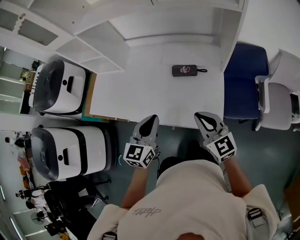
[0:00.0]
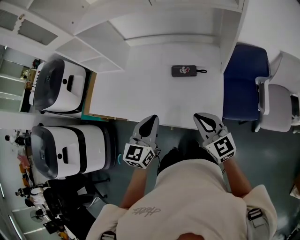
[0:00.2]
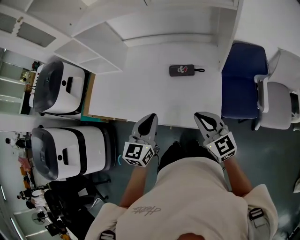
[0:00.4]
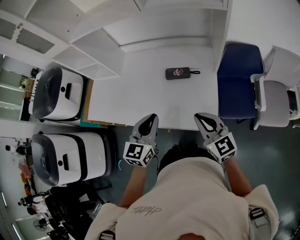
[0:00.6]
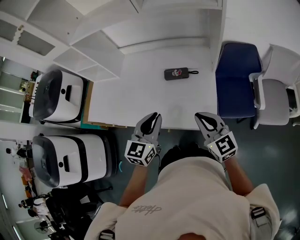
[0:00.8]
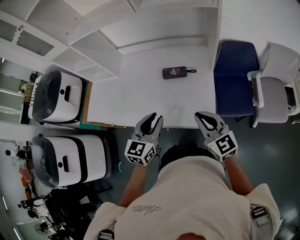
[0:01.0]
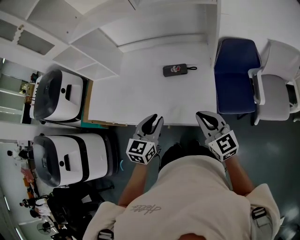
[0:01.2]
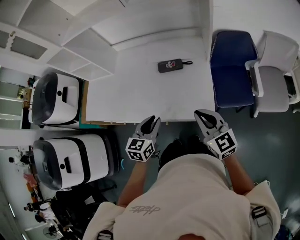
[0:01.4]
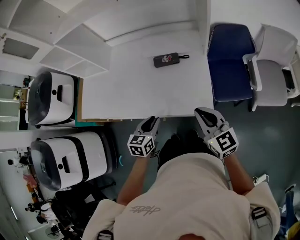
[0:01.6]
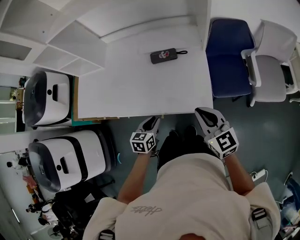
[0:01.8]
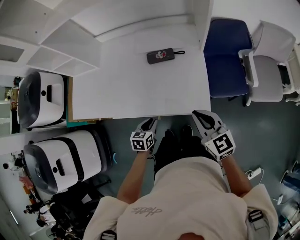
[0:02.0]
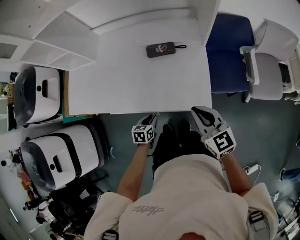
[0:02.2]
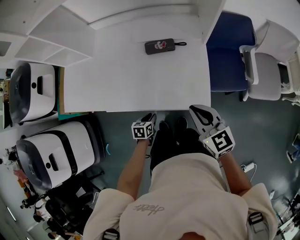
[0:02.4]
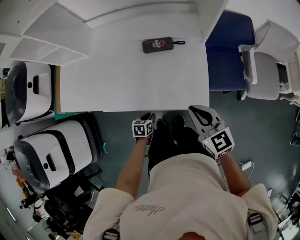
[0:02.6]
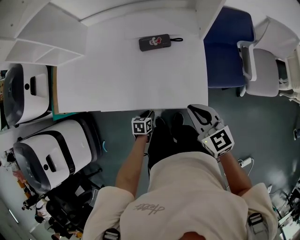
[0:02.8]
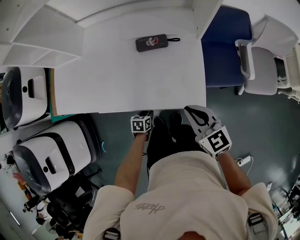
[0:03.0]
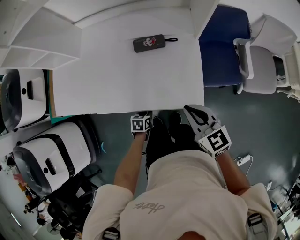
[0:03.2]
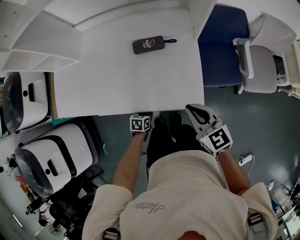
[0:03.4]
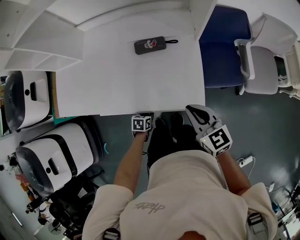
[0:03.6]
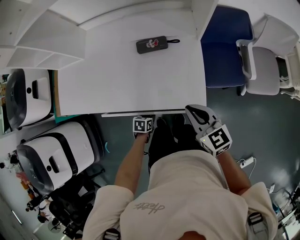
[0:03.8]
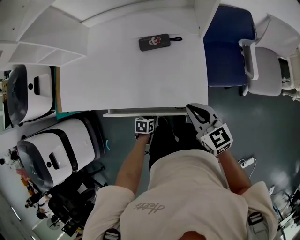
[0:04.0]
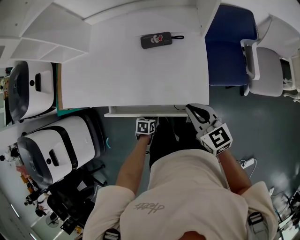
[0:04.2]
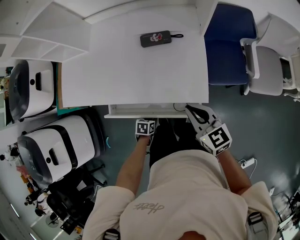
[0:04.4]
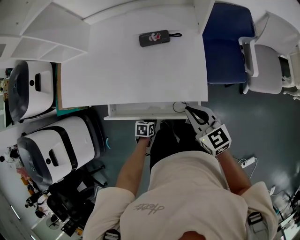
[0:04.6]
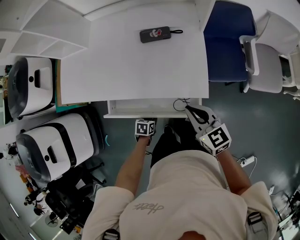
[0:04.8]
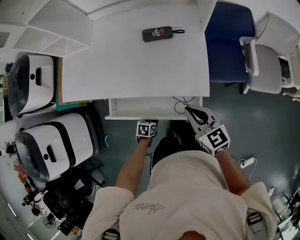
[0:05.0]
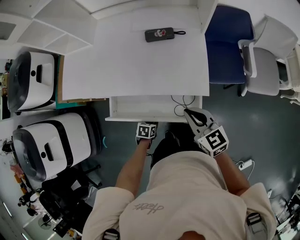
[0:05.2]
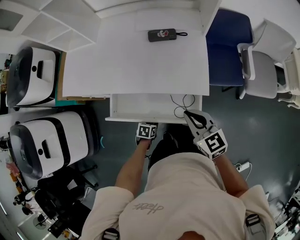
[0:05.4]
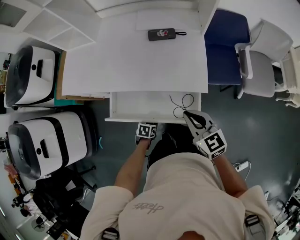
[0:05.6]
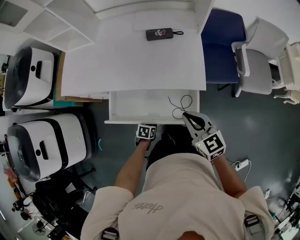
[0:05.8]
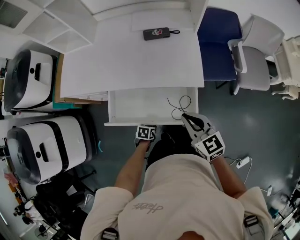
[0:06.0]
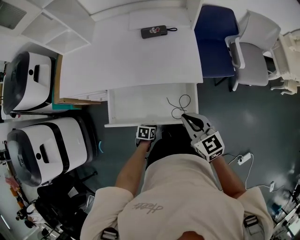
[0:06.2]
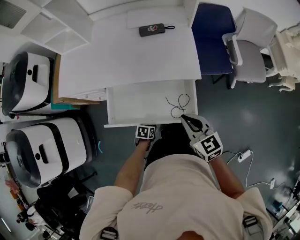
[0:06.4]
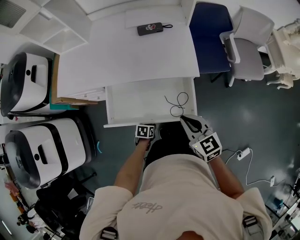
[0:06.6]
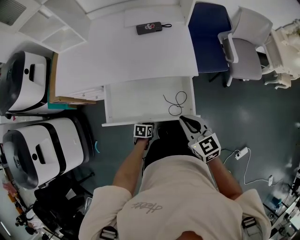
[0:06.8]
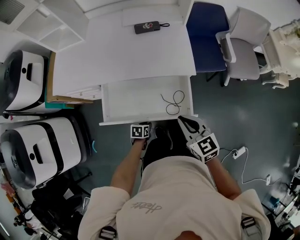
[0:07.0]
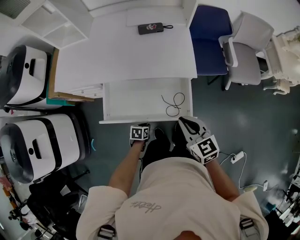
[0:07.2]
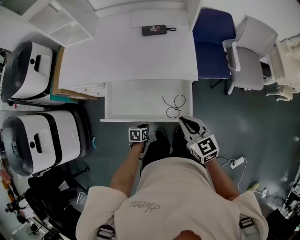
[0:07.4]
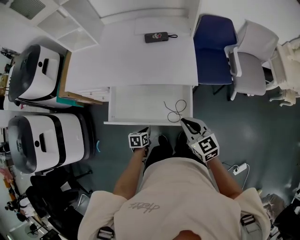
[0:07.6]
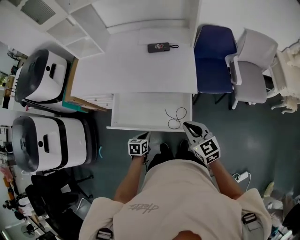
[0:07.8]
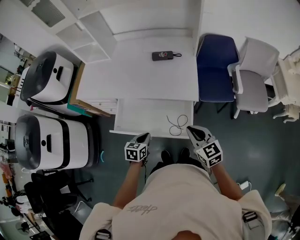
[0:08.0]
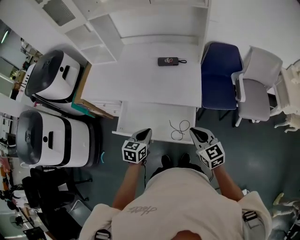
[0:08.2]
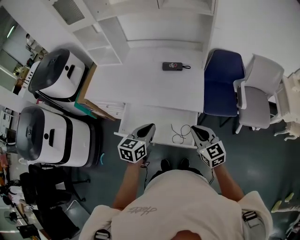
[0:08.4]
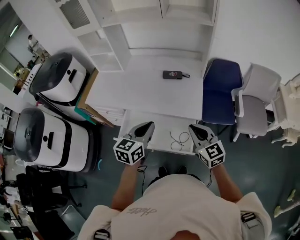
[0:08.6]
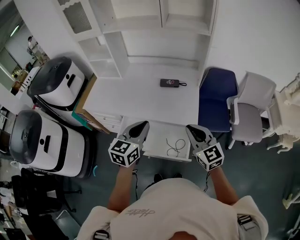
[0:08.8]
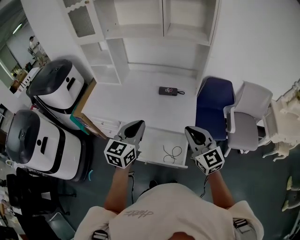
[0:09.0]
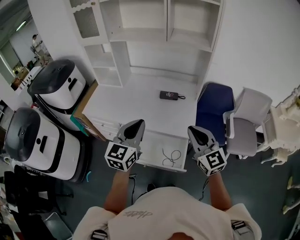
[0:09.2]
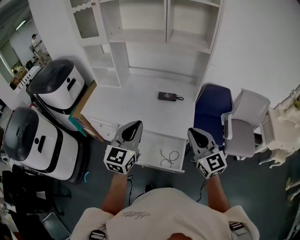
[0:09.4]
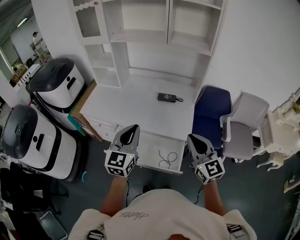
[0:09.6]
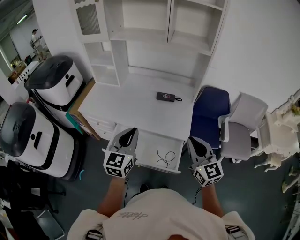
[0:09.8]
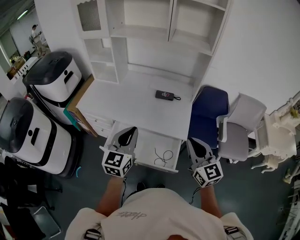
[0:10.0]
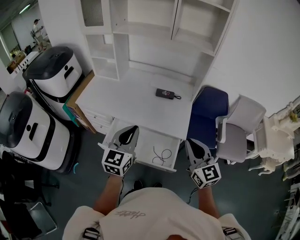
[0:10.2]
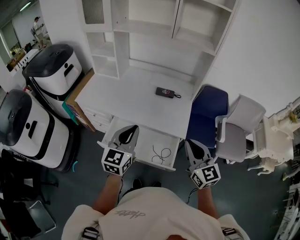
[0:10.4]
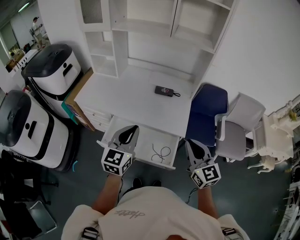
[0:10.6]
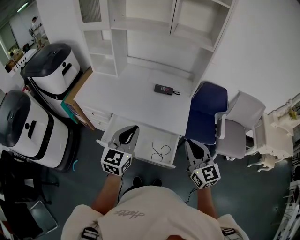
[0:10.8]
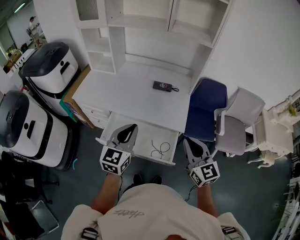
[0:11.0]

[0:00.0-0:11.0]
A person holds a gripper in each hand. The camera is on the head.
0.0 to 1.6 s: The left gripper moves downward, roughly 15 cm, swivels roughly 20 degrees, and opens up, while the right gripper moves to the right and backward, roughly 10 cm.
1.6 to 3.2 s: The left gripper is displaced downward by about 25 cm, and changes its angle by approximately 30 degrees. The right gripper moves downward, some 5 cm.
3.2 to 4.8 s: The left gripper shifts approximately 10 cm backward. Meanwhile the right gripper travels backward by roughly 5 cm.
4.8 to 6.2 s: The two grippers go roughly 15 cm backward.
6.2 to 7.8 s: The left gripper travels upward by approximately 15 cm, and turns by about 20 degrees, while the right gripper goes about 5 cm to the right.
7.8 to 9.4 s: The left gripper is displaced upward by roughly 50 cm, and tips its fingers upward by about 50 degrees, while the right gripper goes about 20 cm upward, and turns by approximately 30 degrees.
9.4 to 11.0 s: The two grippers go some 5 cm downward.

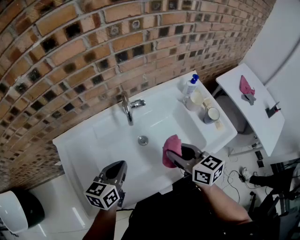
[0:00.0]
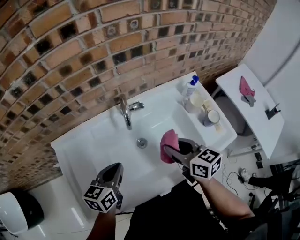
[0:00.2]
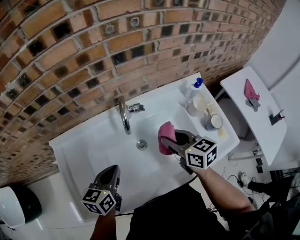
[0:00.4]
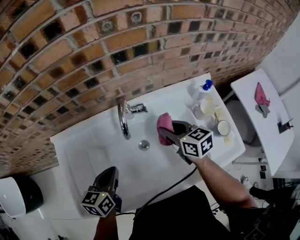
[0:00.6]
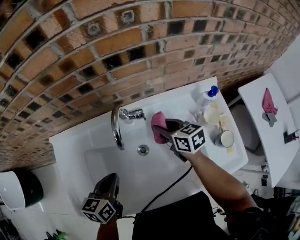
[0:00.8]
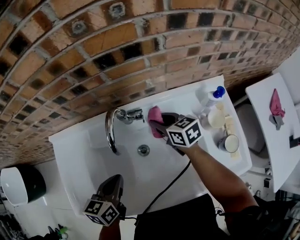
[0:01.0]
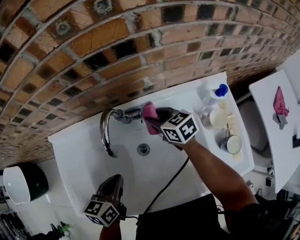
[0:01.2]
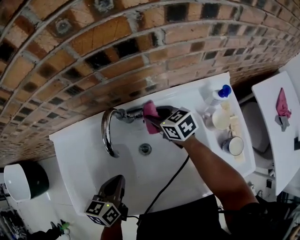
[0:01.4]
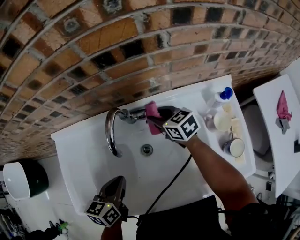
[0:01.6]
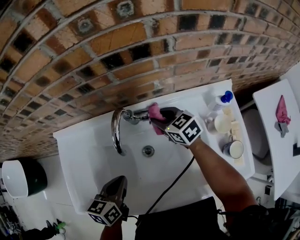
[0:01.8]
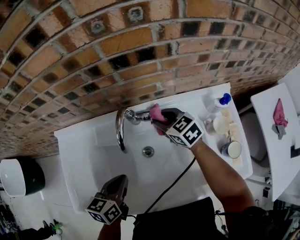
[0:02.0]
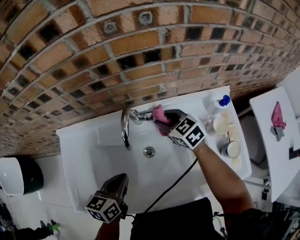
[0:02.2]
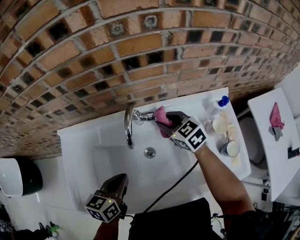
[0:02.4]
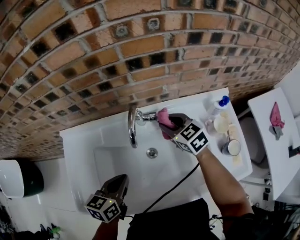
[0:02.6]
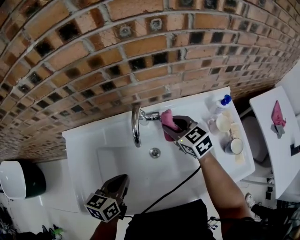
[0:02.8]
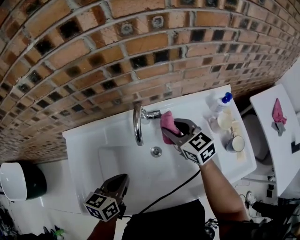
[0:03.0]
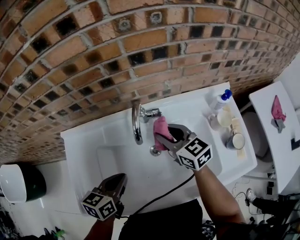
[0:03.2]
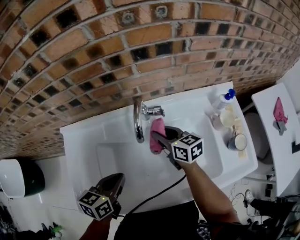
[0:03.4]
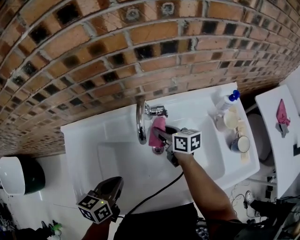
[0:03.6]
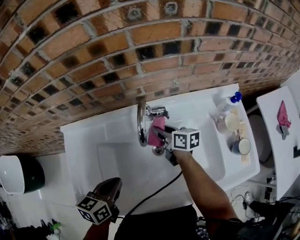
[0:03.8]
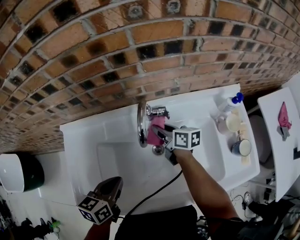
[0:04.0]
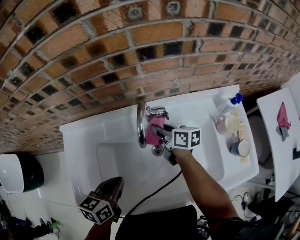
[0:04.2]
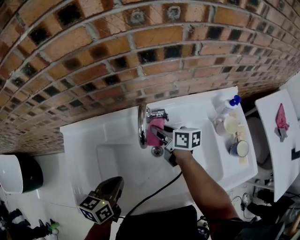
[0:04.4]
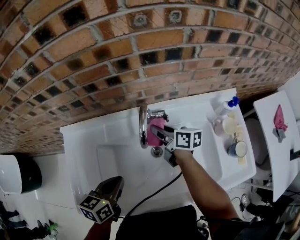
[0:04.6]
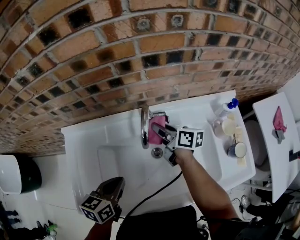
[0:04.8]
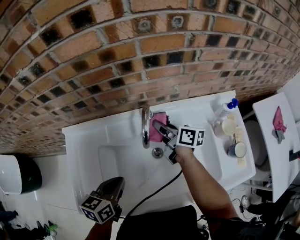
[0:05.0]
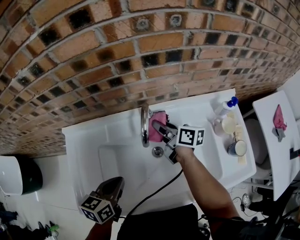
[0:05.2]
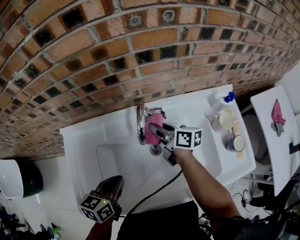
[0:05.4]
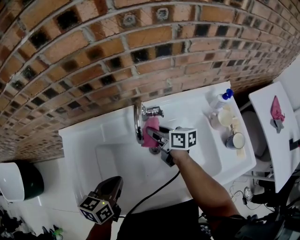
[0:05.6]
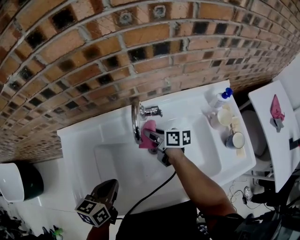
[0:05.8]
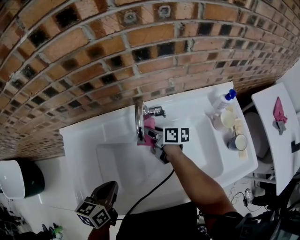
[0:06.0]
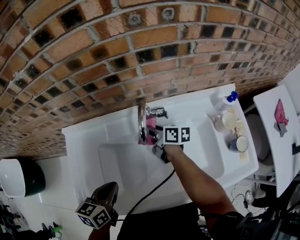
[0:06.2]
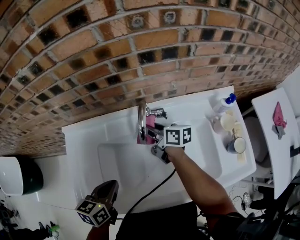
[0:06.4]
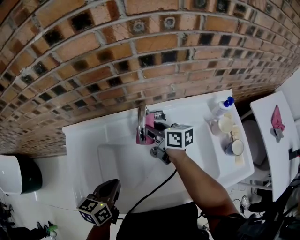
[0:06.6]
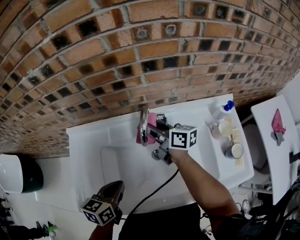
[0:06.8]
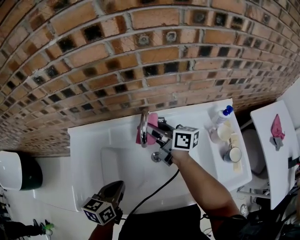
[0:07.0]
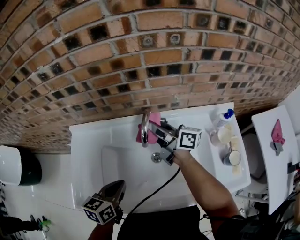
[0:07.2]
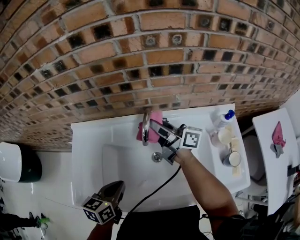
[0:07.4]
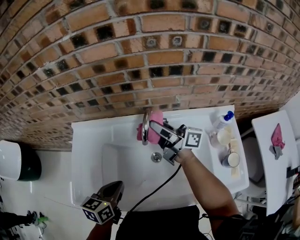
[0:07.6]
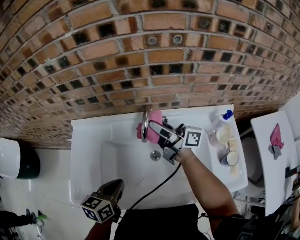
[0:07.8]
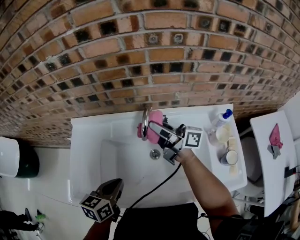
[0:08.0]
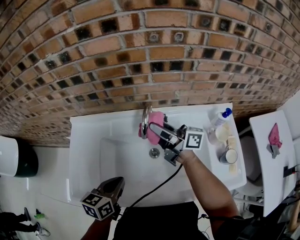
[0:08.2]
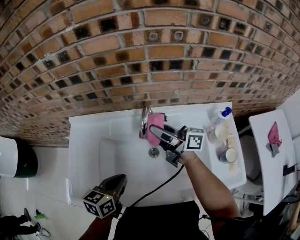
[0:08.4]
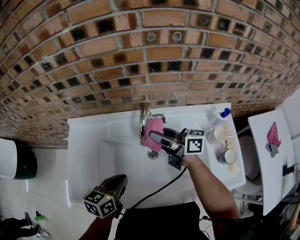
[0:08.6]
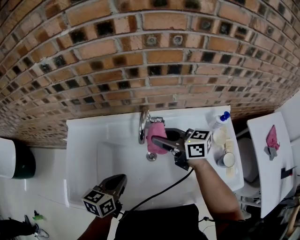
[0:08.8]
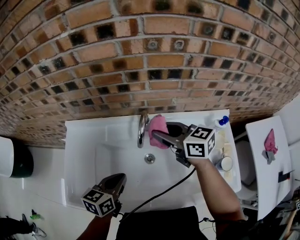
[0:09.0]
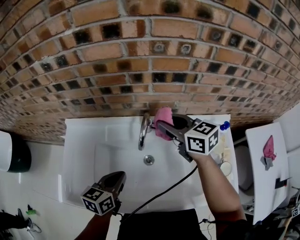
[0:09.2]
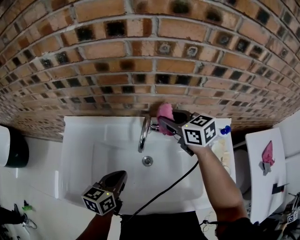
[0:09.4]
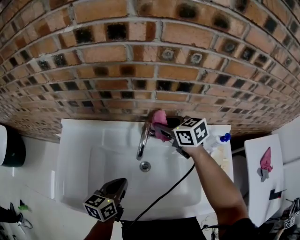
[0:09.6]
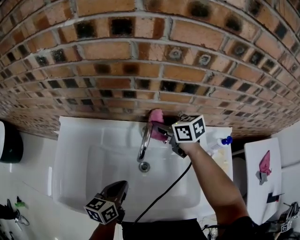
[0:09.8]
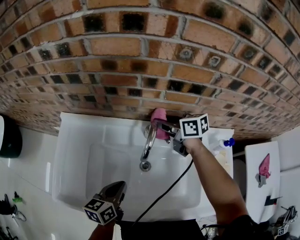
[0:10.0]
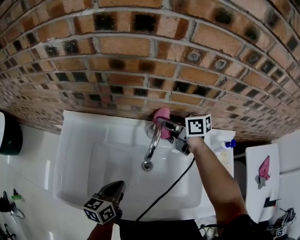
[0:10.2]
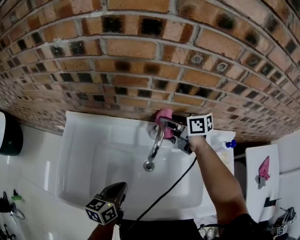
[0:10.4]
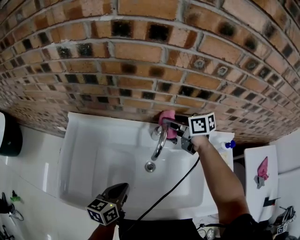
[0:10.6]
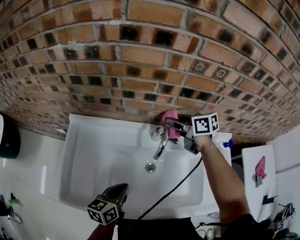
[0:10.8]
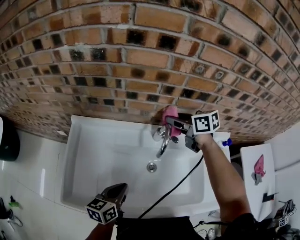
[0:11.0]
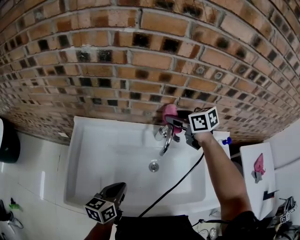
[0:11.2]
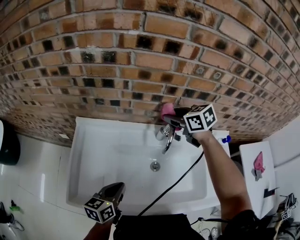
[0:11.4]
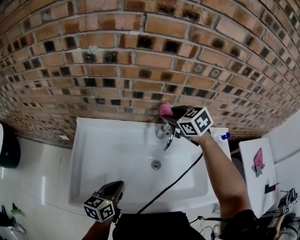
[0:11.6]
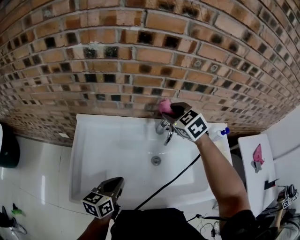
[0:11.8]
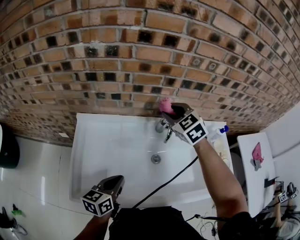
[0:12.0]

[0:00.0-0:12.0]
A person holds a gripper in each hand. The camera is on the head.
0.0 to 1.6 s: The left gripper shifts approximately 5 cm downward, and changes its angle by roughly 30 degrees; the right gripper shifts about 30 cm forward and downward, and changes its angle by roughly 30 degrees.
1.6 to 3.0 s: The right gripper is displaced upward and backward by about 15 cm.
3.0 to 4.4 s: The right gripper travels downward and to the left by about 10 cm, and rolls clockwise, seen from behind, by about 50 degrees.
4.4 to 6.0 s: The grippers stay close to where they were, moving slightly.
6.0 to 7.6 s: The right gripper heads upward, covering roughly 20 cm, and points its fingers approximately 40 degrees further upward.
7.6 to 9.0 s: The left gripper ends up approximately 5 cm from where it was, while the right gripper points its fingers roughly 40 degrees further downward.
9.0 to 10.4 s: The right gripper heads forward and downward, covering some 15 cm, and rotates some 20 degrees.
10.4 to 12.0 s: The right gripper travels upward, to the left and backward by roughly 15 cm, and twists about 50 degrees counterclockwise, seen from behind; the left gripper shifts roughly 10 cm to the left.

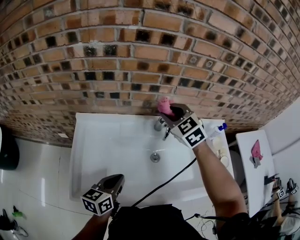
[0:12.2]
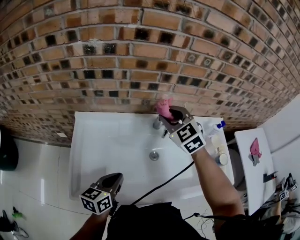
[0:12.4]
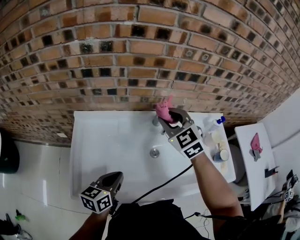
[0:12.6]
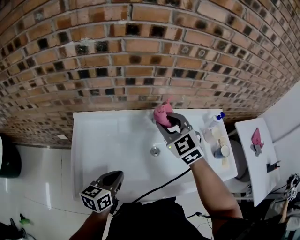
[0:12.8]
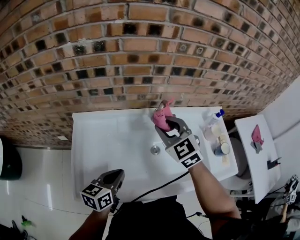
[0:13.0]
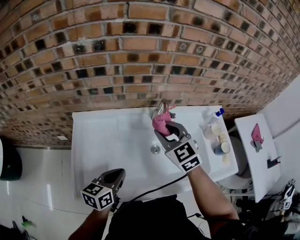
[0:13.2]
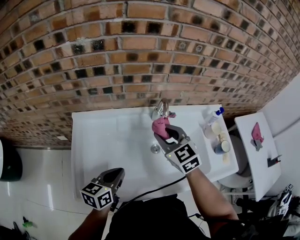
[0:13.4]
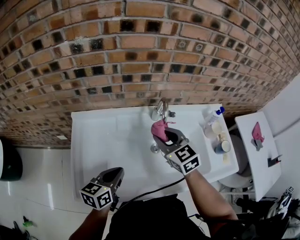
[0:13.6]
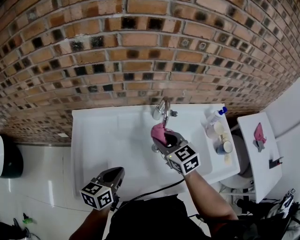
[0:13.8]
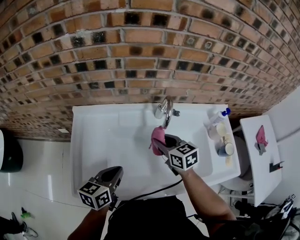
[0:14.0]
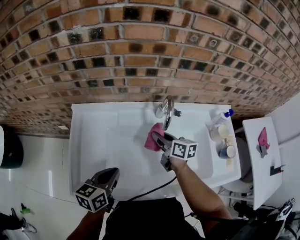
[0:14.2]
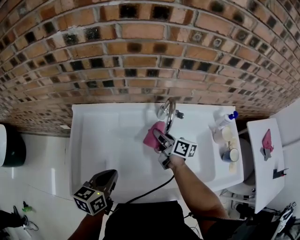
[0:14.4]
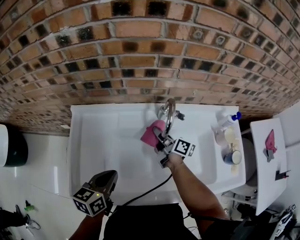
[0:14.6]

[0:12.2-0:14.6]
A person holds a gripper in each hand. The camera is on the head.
12.2 to 13.4 s: The right gripper travels backward by roughly 10 cm.
13.4 to 14.6 s: The right gripper heads downward and forward, covering some 20 cm, and twists about 80 degrees clockwise, seen from behind.
